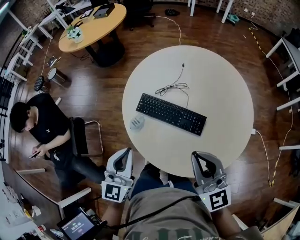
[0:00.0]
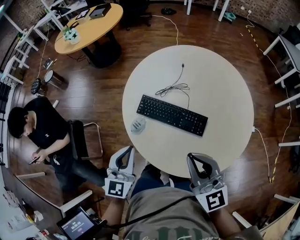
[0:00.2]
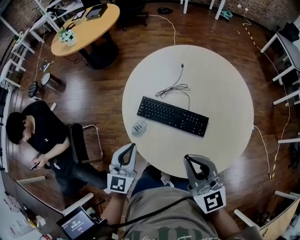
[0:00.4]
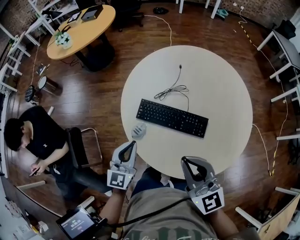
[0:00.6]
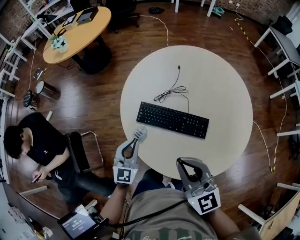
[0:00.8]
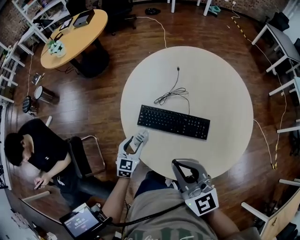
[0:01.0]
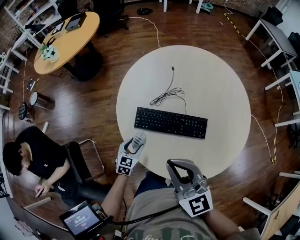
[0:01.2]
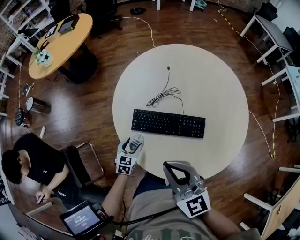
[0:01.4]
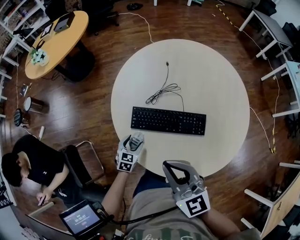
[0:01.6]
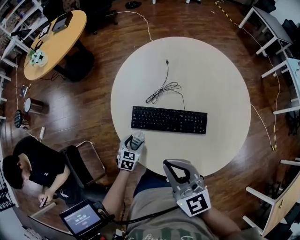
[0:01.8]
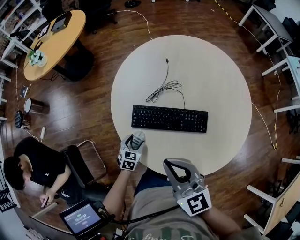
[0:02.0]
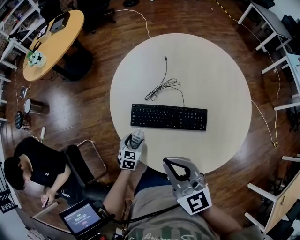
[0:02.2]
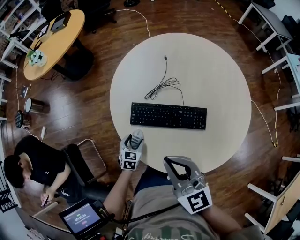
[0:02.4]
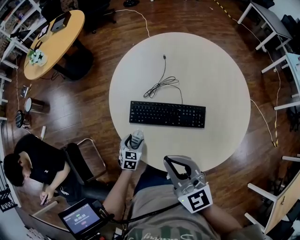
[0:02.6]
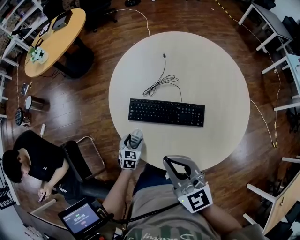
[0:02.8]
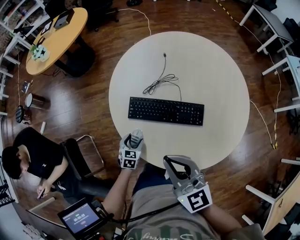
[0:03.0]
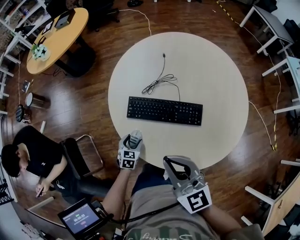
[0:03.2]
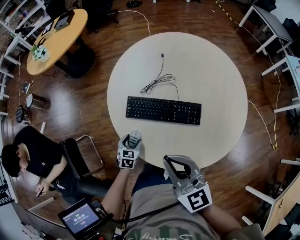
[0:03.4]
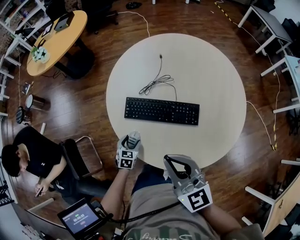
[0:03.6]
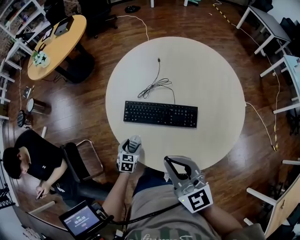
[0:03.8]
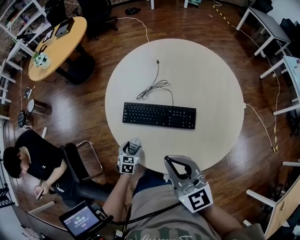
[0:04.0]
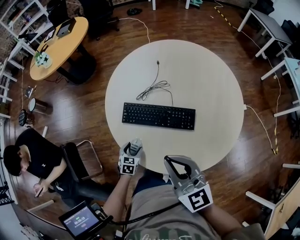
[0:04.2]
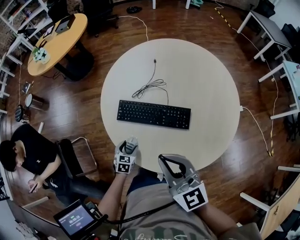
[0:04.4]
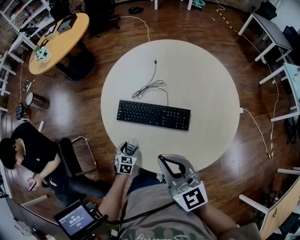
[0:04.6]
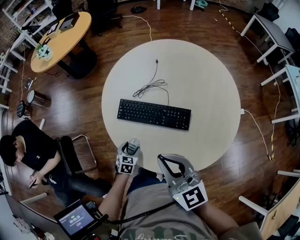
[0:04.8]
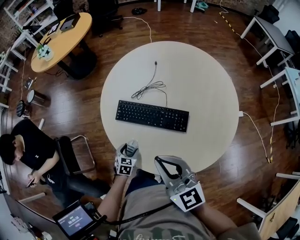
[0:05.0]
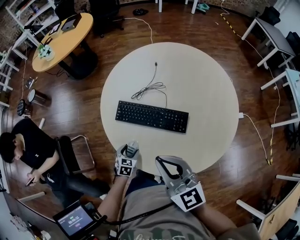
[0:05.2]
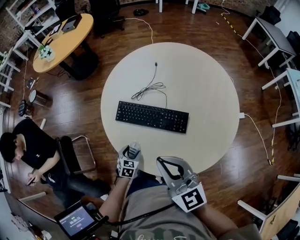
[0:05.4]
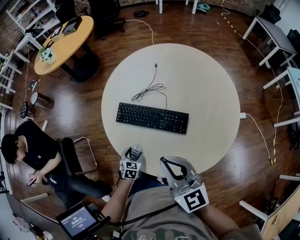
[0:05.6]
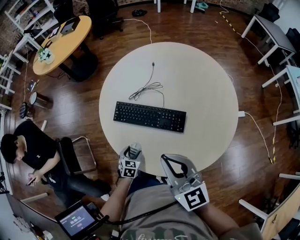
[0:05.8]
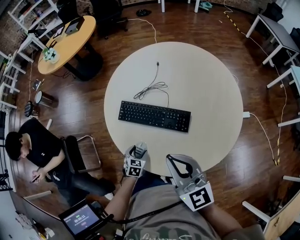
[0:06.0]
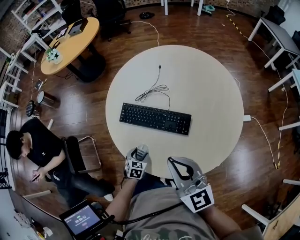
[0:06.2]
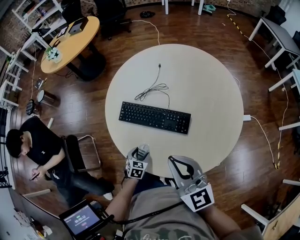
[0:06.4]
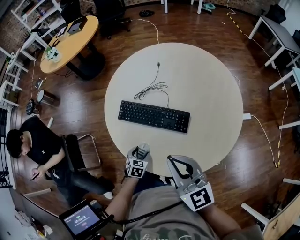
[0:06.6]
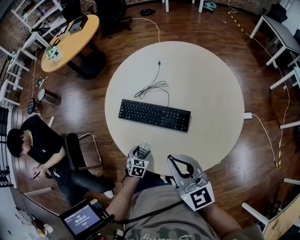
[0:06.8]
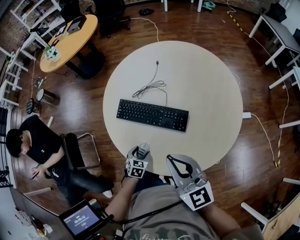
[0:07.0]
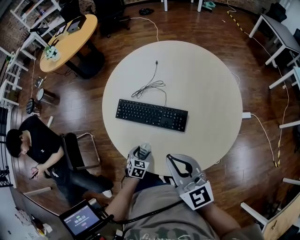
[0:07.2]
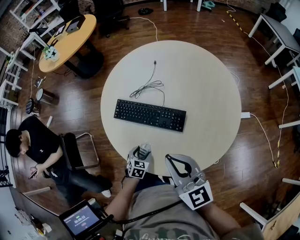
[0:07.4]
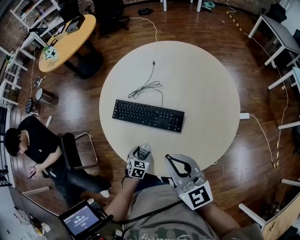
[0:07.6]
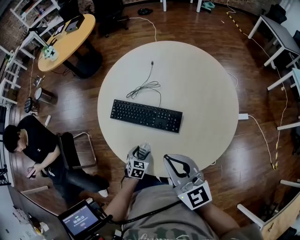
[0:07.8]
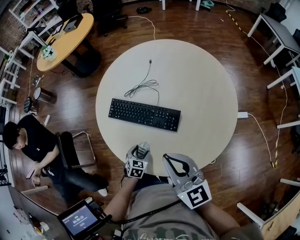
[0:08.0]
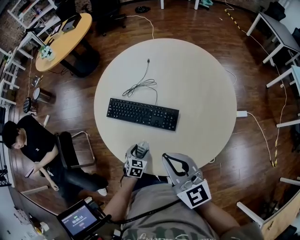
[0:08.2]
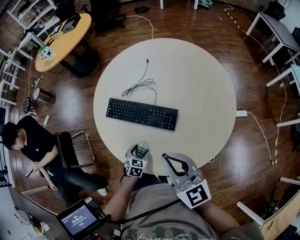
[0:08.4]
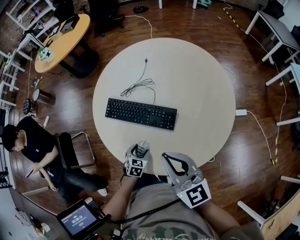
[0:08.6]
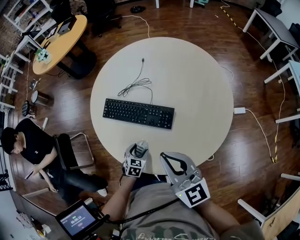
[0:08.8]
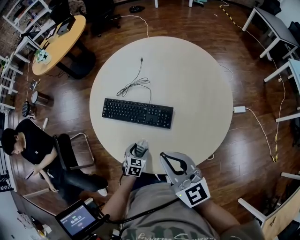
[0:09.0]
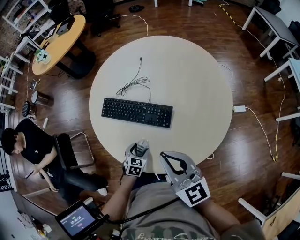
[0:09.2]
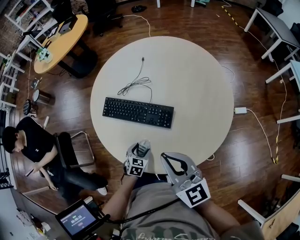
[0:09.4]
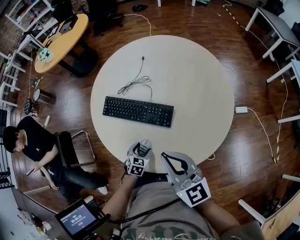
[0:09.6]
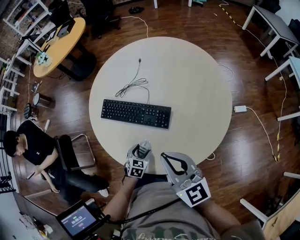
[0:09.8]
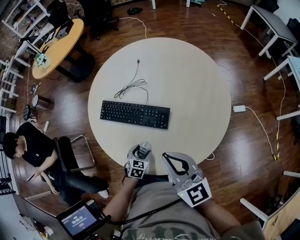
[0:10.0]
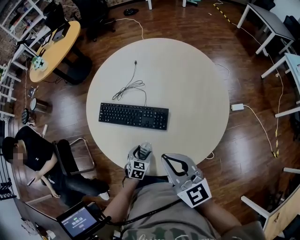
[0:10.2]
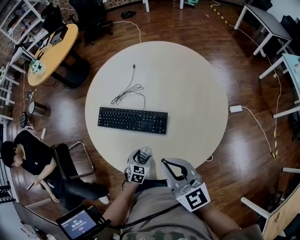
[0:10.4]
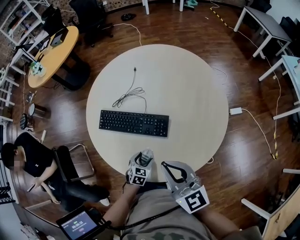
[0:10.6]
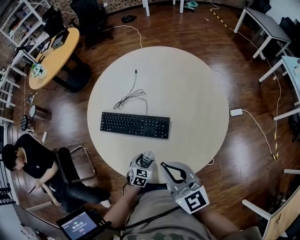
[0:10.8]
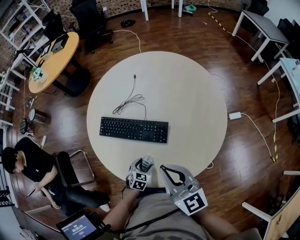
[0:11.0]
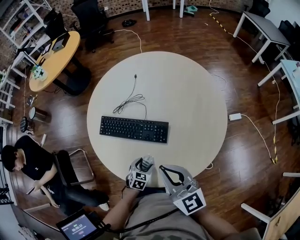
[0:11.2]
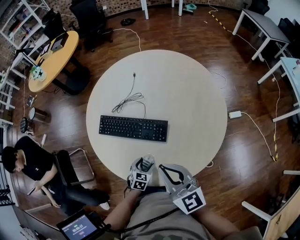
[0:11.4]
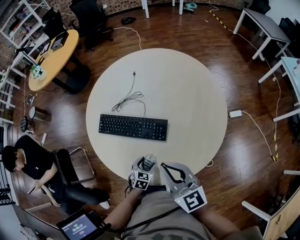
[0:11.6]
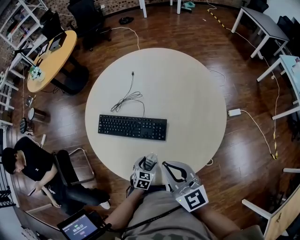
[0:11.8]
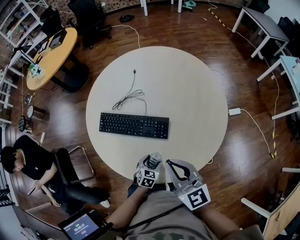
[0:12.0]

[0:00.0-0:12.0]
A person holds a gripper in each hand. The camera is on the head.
0:00.0 to 0:01.6: The left gripper heads downward and forward, covering some 35 cm, tilts its fingers roughly 40 degrees downward, and opens up; the right gripper moves to the left, downward and forward, approximately 15 cm.
0:01.6 to 0:03.0: The left gripper moves backward, about 5 cm.
0:03.0 to 0:04.4: The right gripper moves to the right, about 5 cm.
0:04.4 to 0:06.0: Both grippers travel together to the right, some 5 cm.
0:06.0 to 0:07.6: The left gripper travels to the right by roughly 5 cm.
0:07.6 to 0:09.0: There are only small adjustments of the grippers.
0:09.0 to 0:10.4: There are only small adjustments of the grippers.
0:10.4 to 0:12.0: The left gripper moves to the right, about 5 cm.

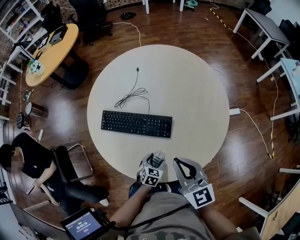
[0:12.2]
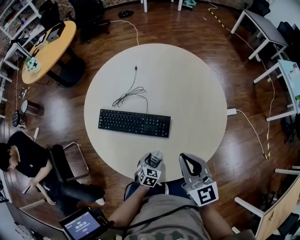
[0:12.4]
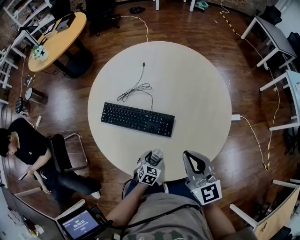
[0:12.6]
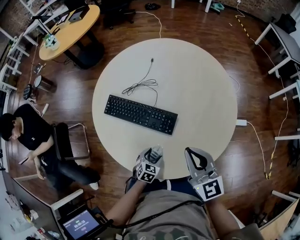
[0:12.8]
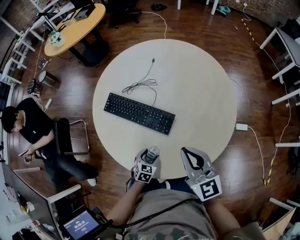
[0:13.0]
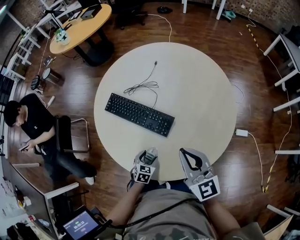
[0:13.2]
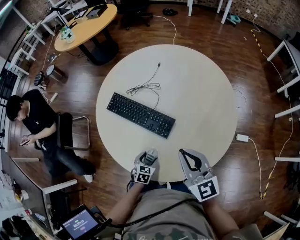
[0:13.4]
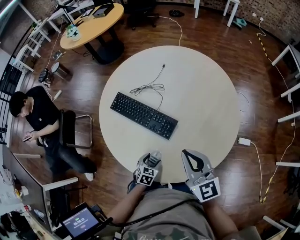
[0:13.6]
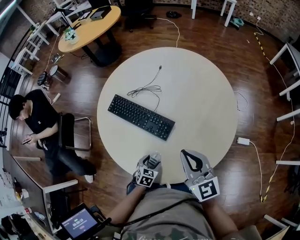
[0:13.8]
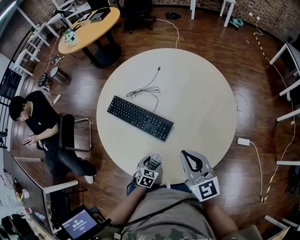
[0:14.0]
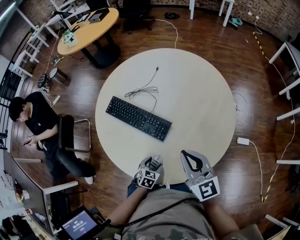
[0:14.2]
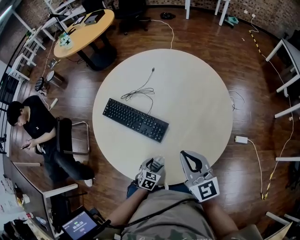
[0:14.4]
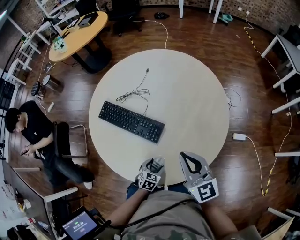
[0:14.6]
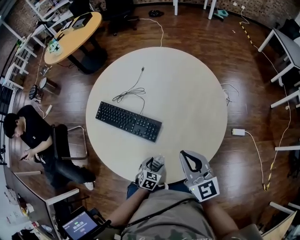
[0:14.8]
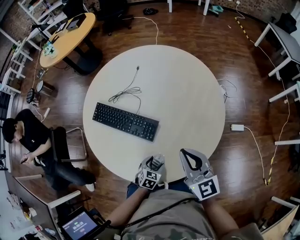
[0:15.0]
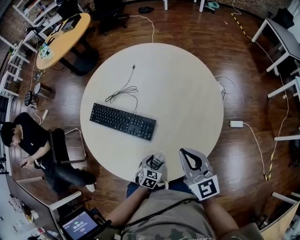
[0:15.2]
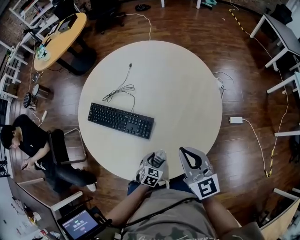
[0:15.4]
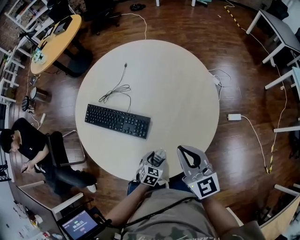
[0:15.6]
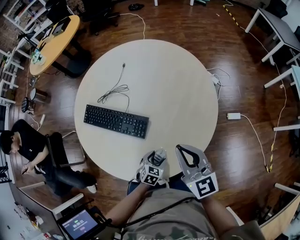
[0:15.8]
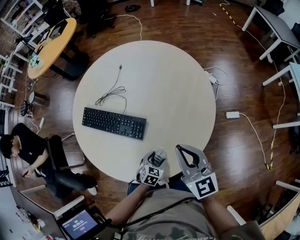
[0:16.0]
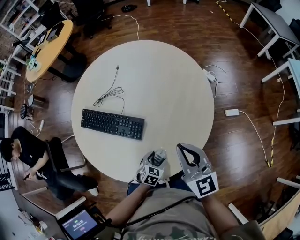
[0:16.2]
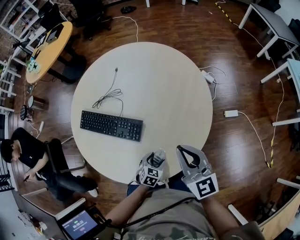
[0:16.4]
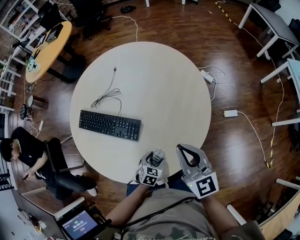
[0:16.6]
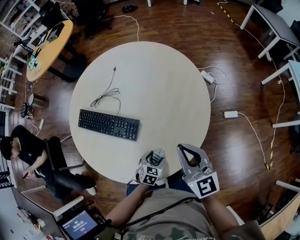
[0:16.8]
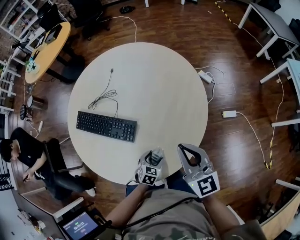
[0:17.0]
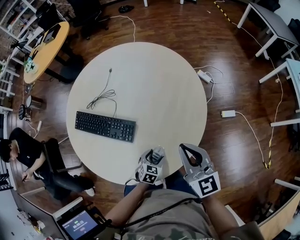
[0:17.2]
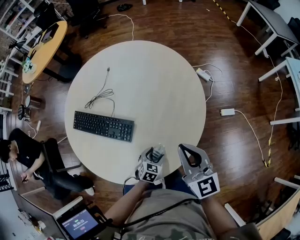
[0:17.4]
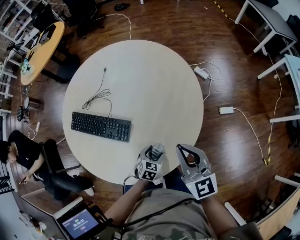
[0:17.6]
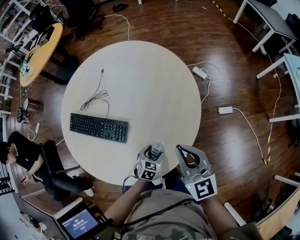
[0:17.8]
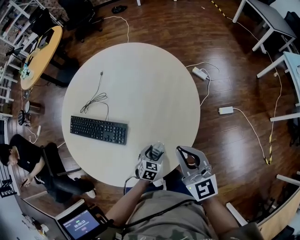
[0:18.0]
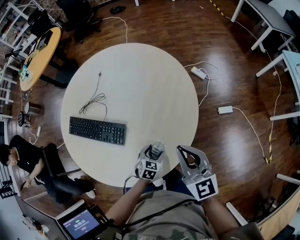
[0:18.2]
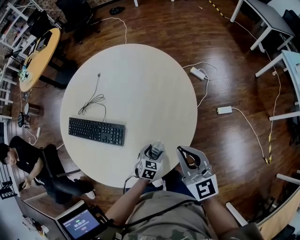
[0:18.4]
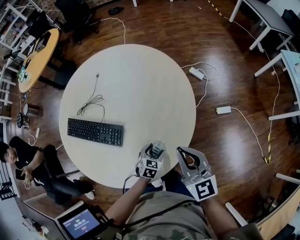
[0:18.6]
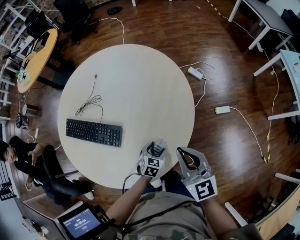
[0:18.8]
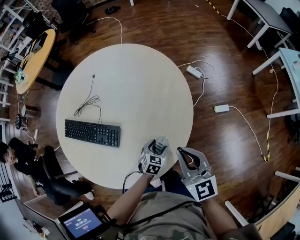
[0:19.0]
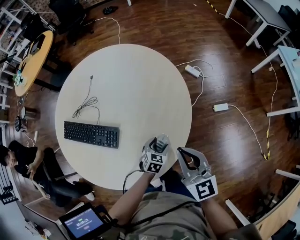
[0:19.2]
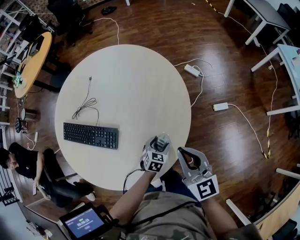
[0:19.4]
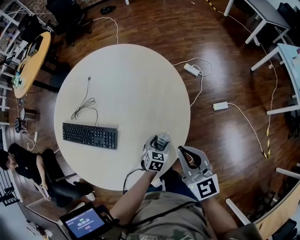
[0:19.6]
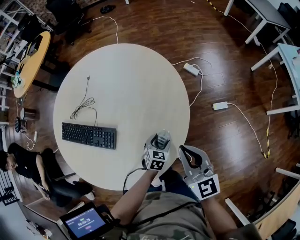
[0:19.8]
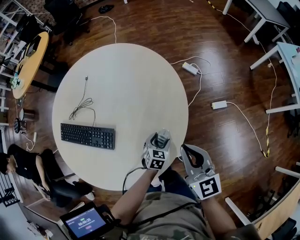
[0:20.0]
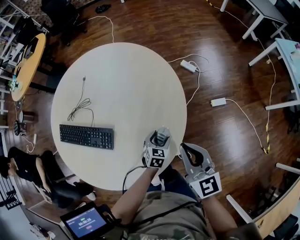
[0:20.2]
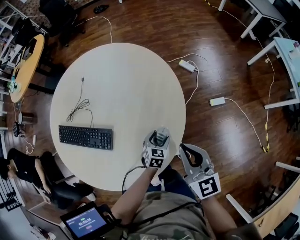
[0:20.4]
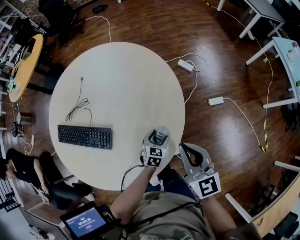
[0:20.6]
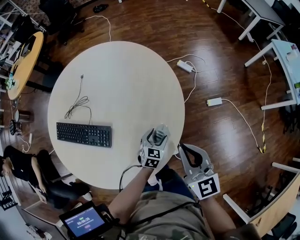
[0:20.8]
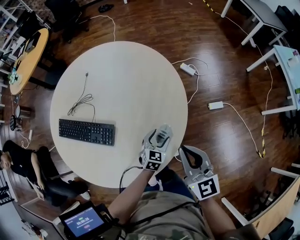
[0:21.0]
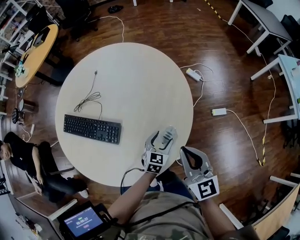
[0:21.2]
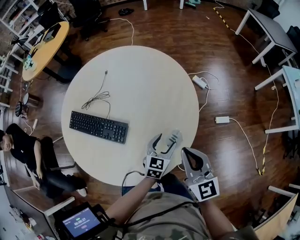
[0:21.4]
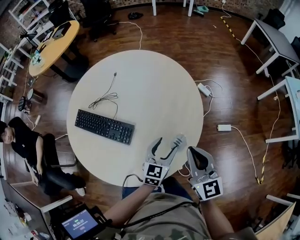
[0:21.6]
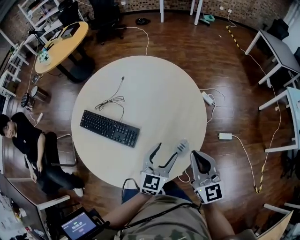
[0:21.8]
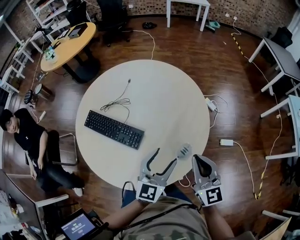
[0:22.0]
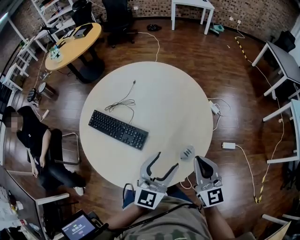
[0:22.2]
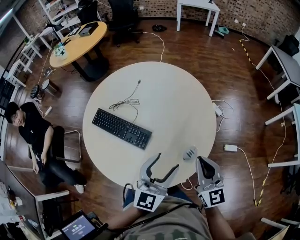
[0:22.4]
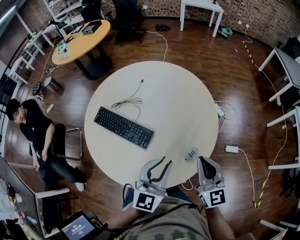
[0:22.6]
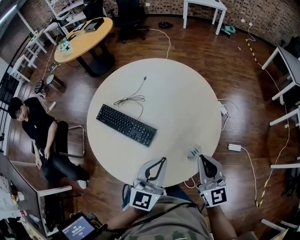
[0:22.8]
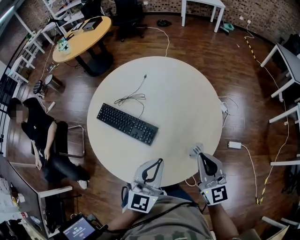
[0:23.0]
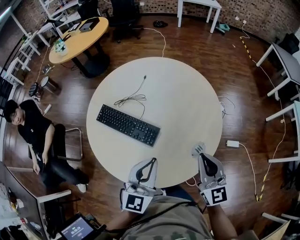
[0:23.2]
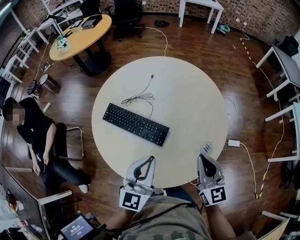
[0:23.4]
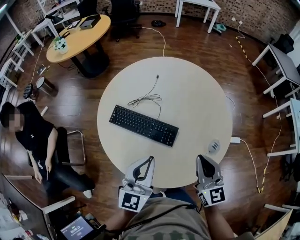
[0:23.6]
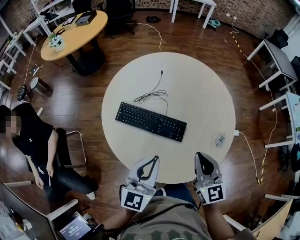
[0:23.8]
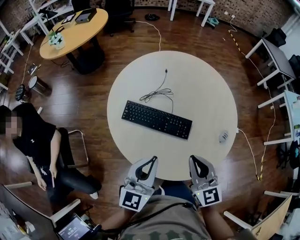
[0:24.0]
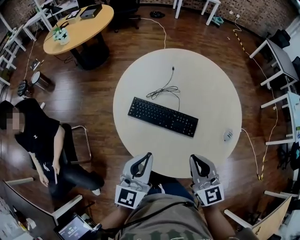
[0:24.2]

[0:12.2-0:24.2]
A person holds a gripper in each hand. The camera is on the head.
0:12.2 to 0:13.8: The left gripper rotates some 20 degrees. Meanwhile the right gripper travels to the right by about 10 cm, and rotates about 20 degrees.
0:13.8 to 0:15.2: The two grippers go roughly 10 cm to the right.
0:15.2 to 0:16.6: The two grippers go roughly 5 cm to the right.
0:16.6 to 0:18.2: The left gripper shifts roughly 10 cm to the right and forward. Meanwhile the right gripper travels to the right by roughly 5 cm.
0:18.2 to 0:19.8: The left gripper is displaced to the right and forward by approximately 10 cm, while the right gripper moves to the right, approximately 5 cm.
0:19.8 to 0:21.2: The left gripper is displaced upward by some 5 cm.
0:21.2 to 0:22.6: The left gripper goes approximately 30 cm upward and to the left, points its fingers roughly 30 degrees further upward, and closes up, while the right gripper goes some 10 cm to the left and upward.
0:22.6 to 0:24.2: The grippers both shift to the left by roughly 40 cm. The left gripper closes.
